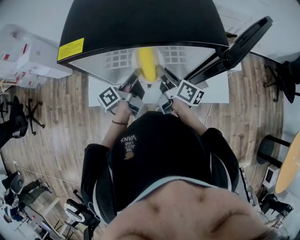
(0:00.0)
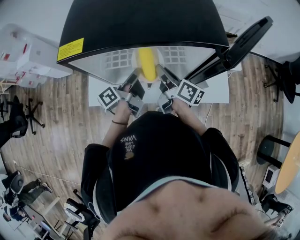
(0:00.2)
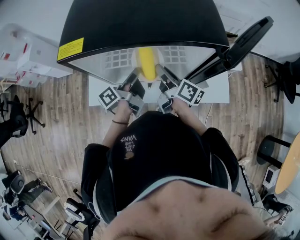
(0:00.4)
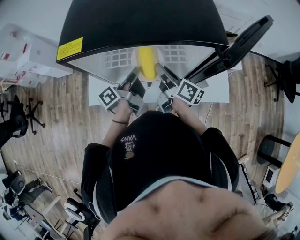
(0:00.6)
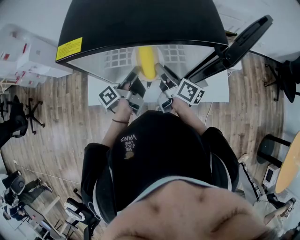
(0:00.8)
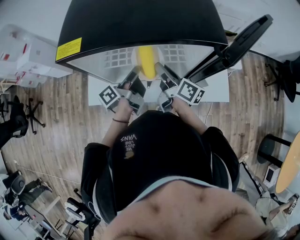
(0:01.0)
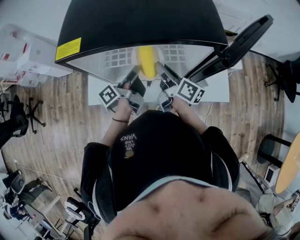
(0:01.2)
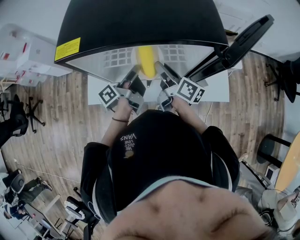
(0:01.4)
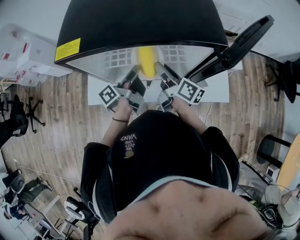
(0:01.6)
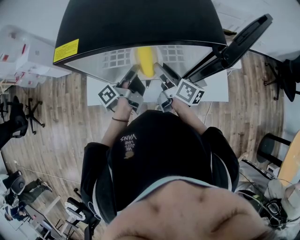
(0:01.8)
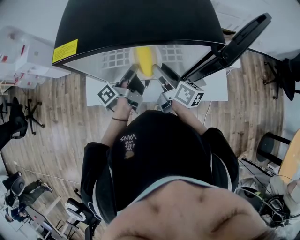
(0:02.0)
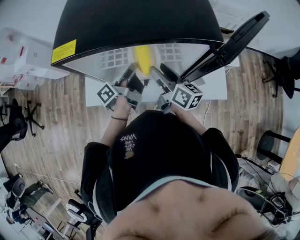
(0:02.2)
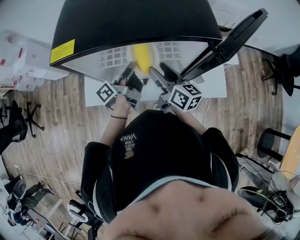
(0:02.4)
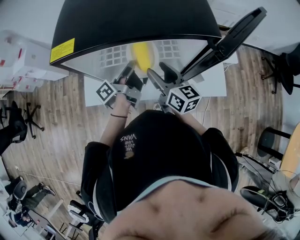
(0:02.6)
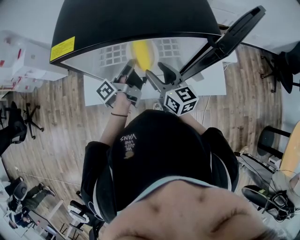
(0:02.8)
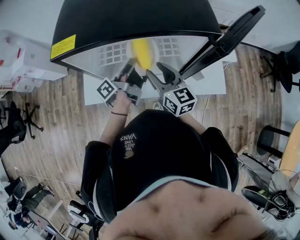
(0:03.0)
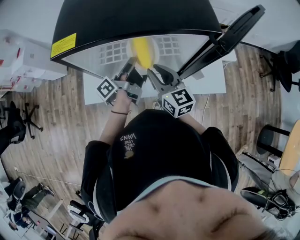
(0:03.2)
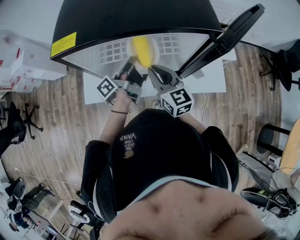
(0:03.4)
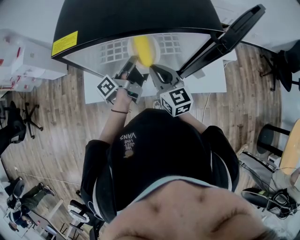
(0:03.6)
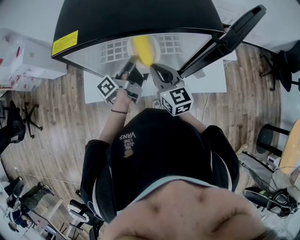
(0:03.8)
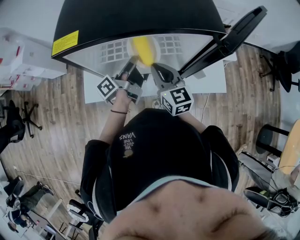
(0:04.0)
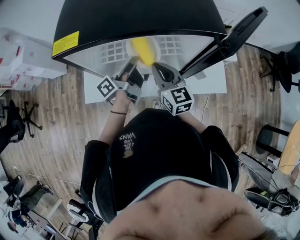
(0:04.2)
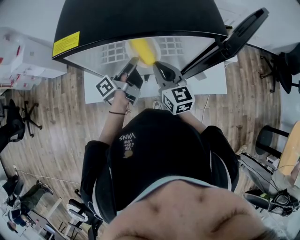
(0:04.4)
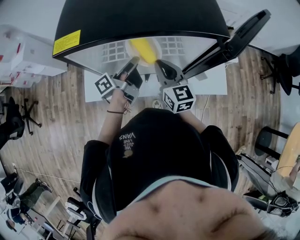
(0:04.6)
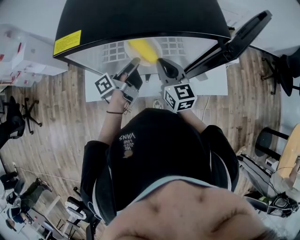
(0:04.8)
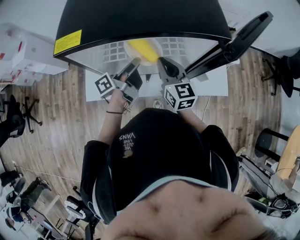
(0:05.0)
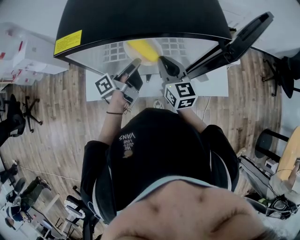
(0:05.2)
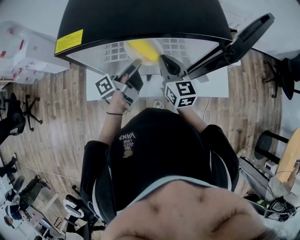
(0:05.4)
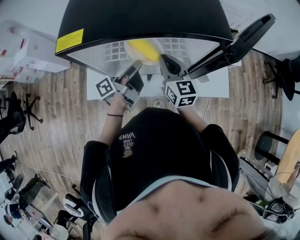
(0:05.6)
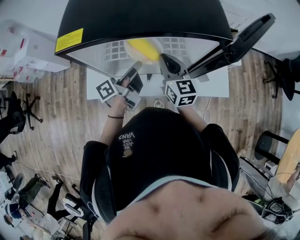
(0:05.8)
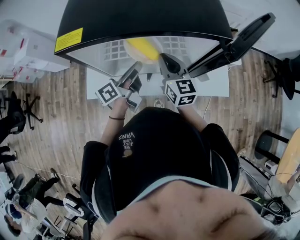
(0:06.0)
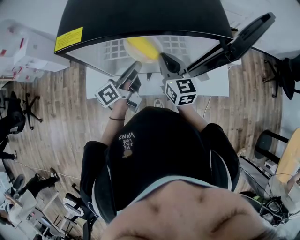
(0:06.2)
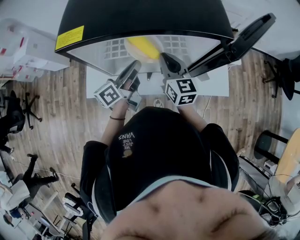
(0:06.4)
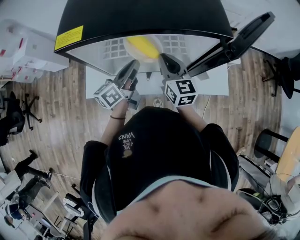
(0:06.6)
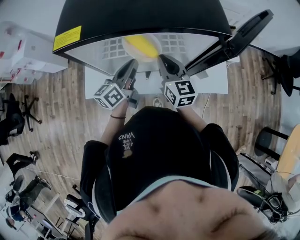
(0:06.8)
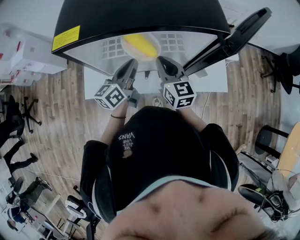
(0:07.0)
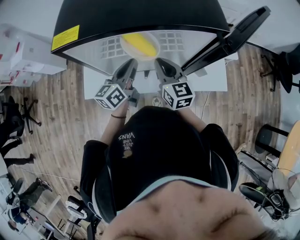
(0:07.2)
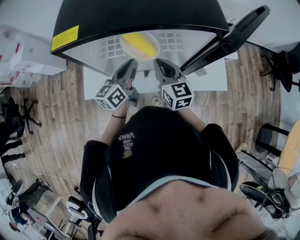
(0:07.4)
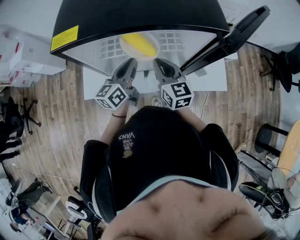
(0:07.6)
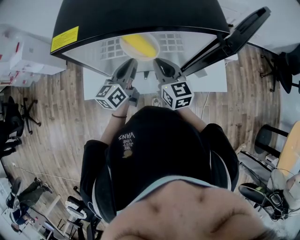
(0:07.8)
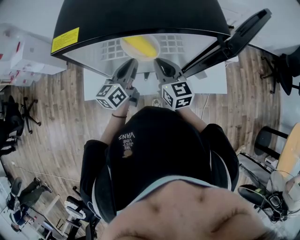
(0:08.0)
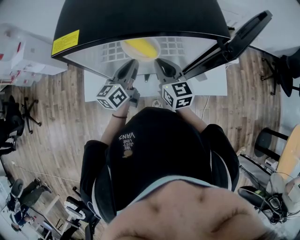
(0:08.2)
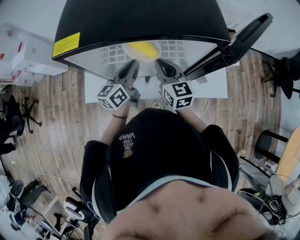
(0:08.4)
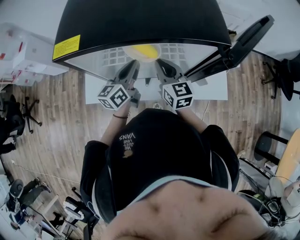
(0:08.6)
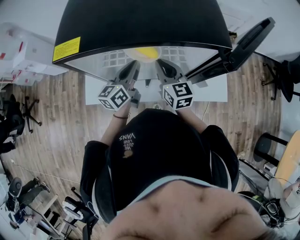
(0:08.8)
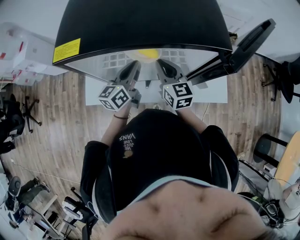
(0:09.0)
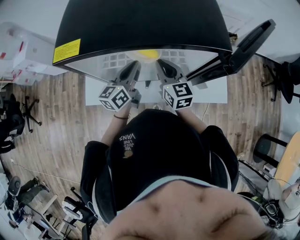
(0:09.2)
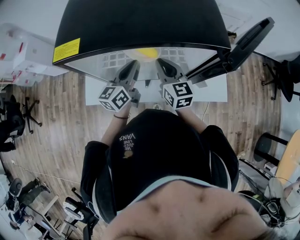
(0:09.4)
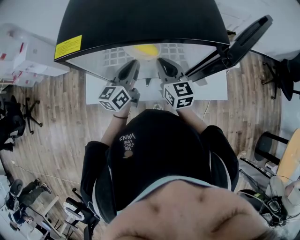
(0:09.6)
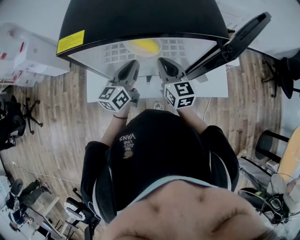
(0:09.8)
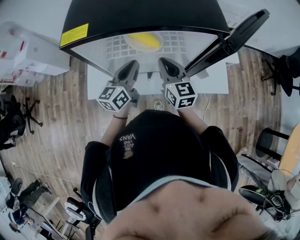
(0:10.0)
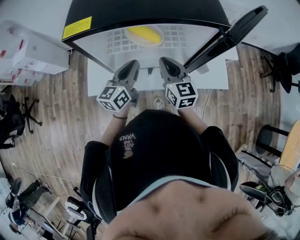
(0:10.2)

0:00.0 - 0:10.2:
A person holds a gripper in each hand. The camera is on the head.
0:00.0 - 0:01.4: The right gripper opens.
0:01.4 - 0:03.0: The right gripper rolls counterclockwise, seen from behind, by about 40 degrees.
0:03.0 - 0:04.4: The right gripper closes up.
0:04.4 - 0:05.8: There are only small adjustments of the grippers.
0:05.8 - 0:07.2: The left gripper turns by some 40 degrees.
0:07.2 - 0:08.8: The grippers move only a little.
0:08.8 - 0:10.2: The grippers both shift backward by approximately 5 cm.

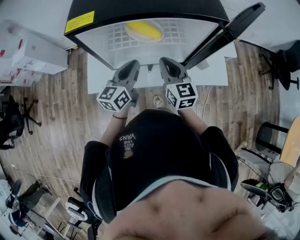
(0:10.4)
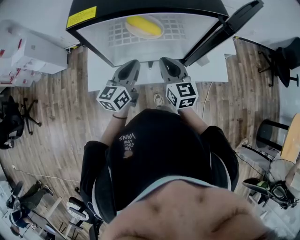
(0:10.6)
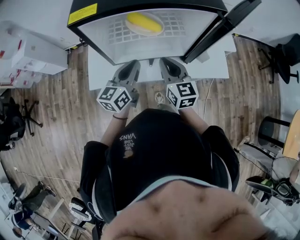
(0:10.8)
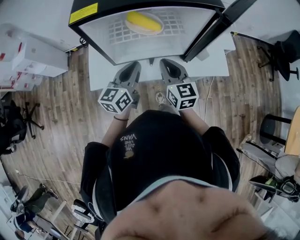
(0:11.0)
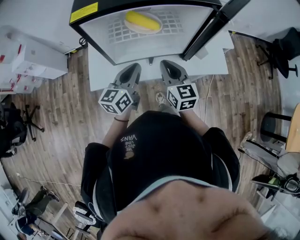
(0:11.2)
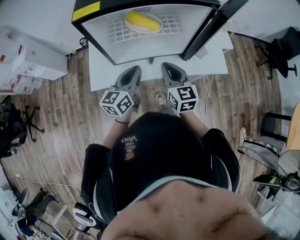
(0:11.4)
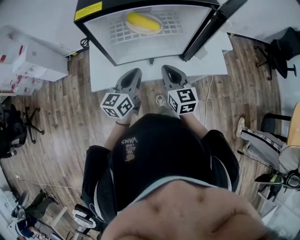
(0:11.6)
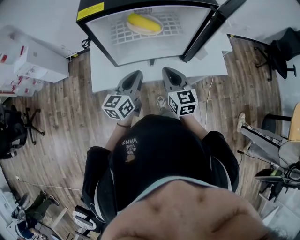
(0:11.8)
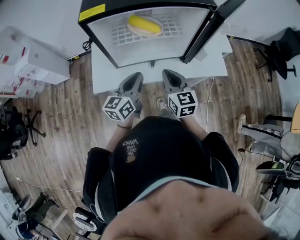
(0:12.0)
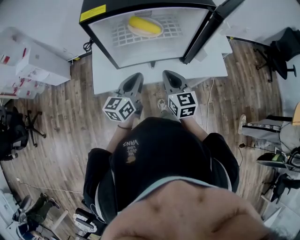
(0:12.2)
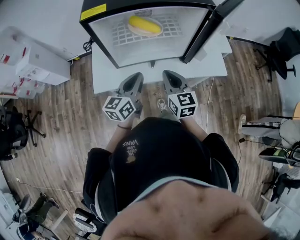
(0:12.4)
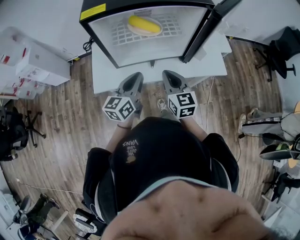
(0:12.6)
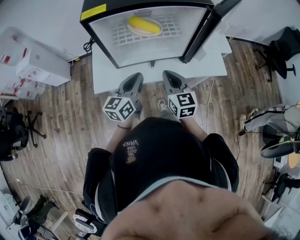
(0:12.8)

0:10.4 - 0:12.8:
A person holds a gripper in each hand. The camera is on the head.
0:10.4 - 0:11.6: The two grippers go roughly 10 cm backward.
0:11.6 - 0:12.8: The grippers move only a little.

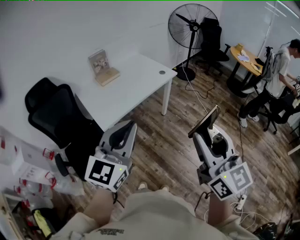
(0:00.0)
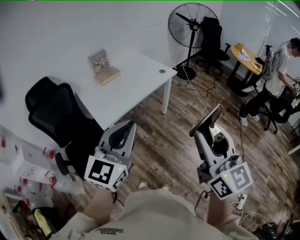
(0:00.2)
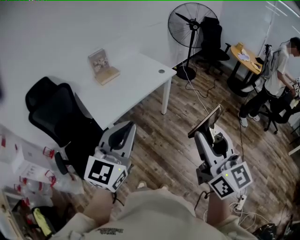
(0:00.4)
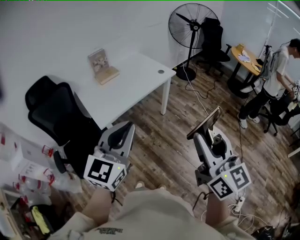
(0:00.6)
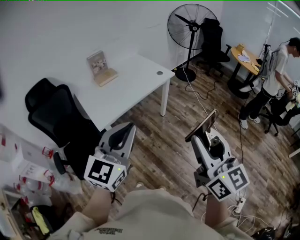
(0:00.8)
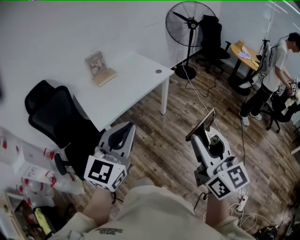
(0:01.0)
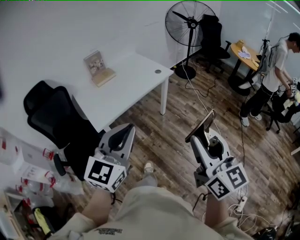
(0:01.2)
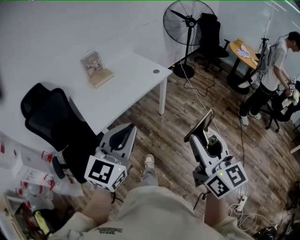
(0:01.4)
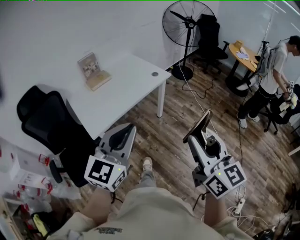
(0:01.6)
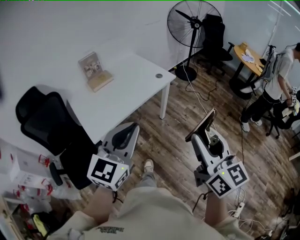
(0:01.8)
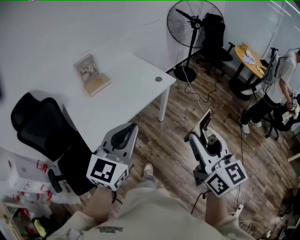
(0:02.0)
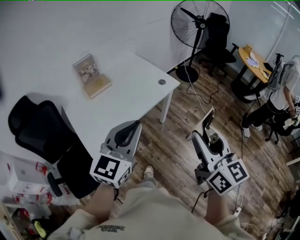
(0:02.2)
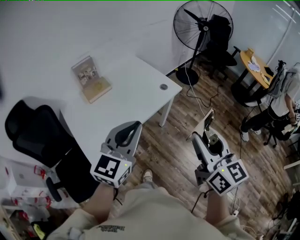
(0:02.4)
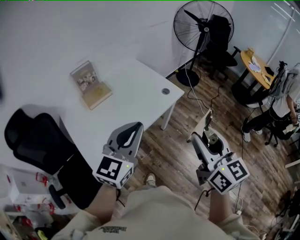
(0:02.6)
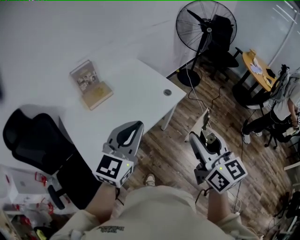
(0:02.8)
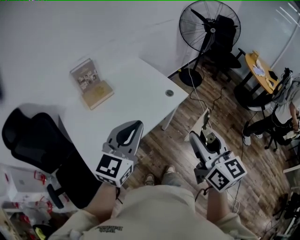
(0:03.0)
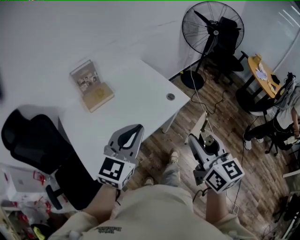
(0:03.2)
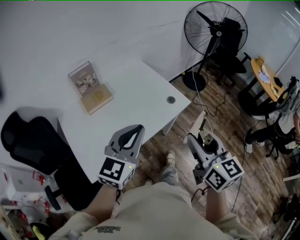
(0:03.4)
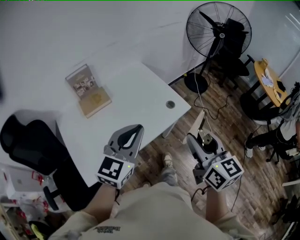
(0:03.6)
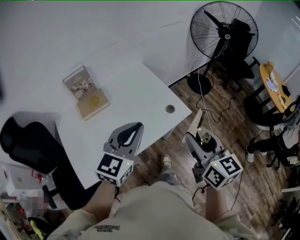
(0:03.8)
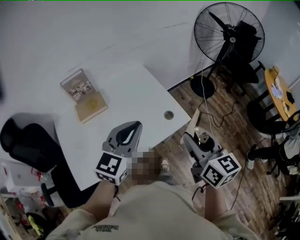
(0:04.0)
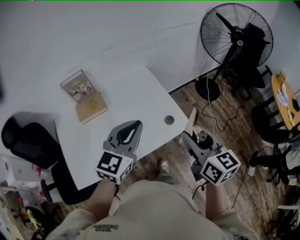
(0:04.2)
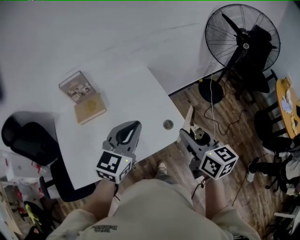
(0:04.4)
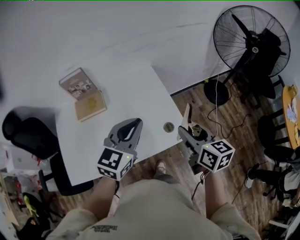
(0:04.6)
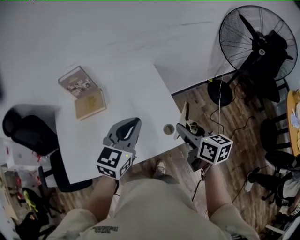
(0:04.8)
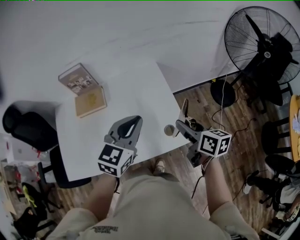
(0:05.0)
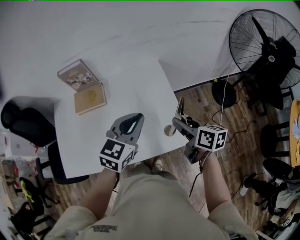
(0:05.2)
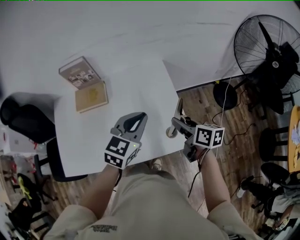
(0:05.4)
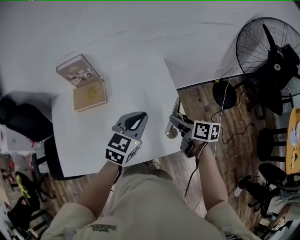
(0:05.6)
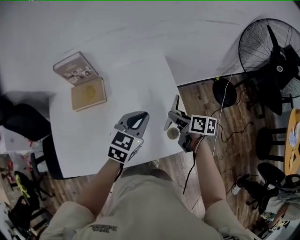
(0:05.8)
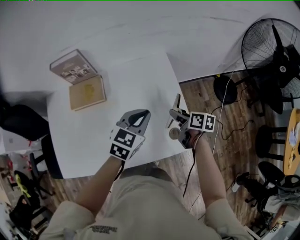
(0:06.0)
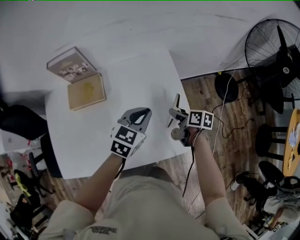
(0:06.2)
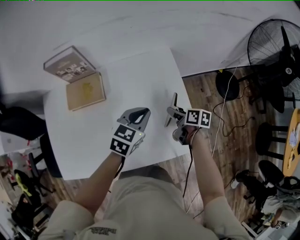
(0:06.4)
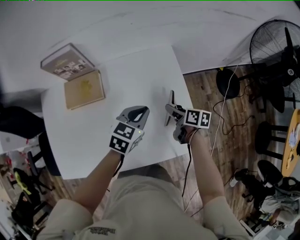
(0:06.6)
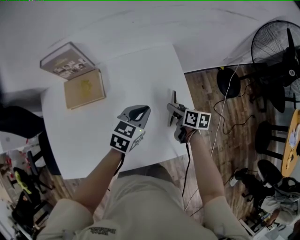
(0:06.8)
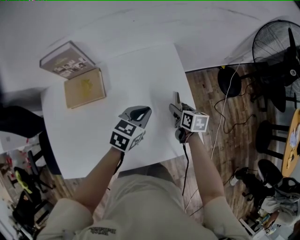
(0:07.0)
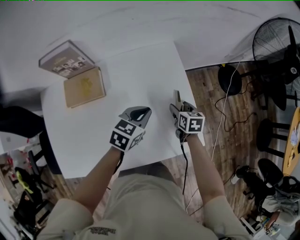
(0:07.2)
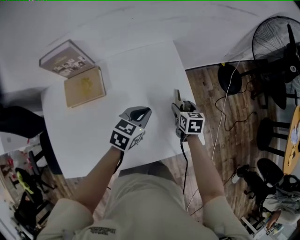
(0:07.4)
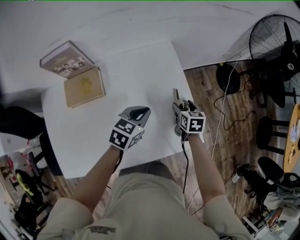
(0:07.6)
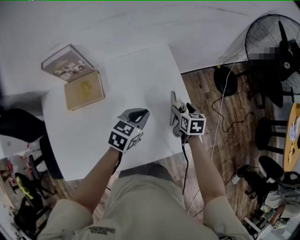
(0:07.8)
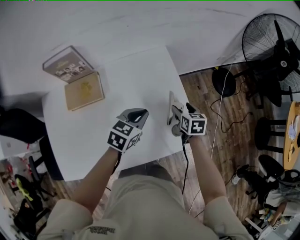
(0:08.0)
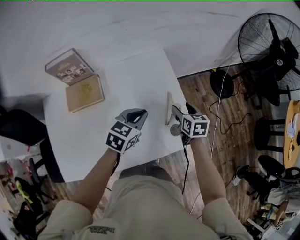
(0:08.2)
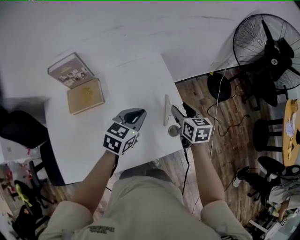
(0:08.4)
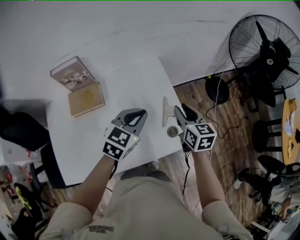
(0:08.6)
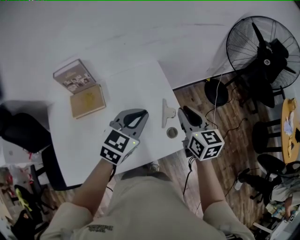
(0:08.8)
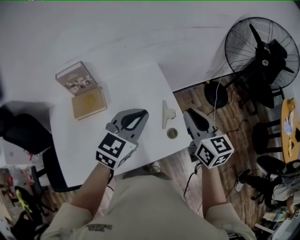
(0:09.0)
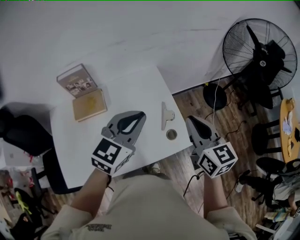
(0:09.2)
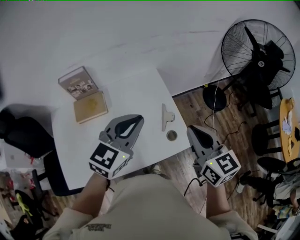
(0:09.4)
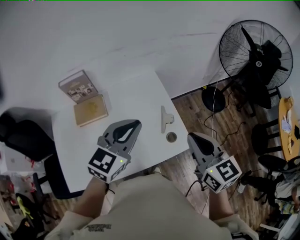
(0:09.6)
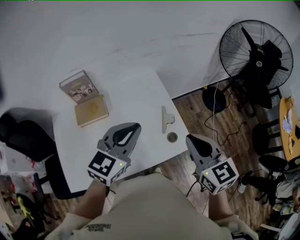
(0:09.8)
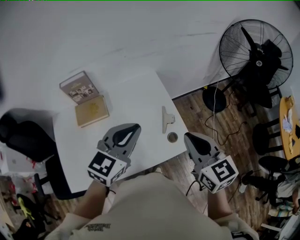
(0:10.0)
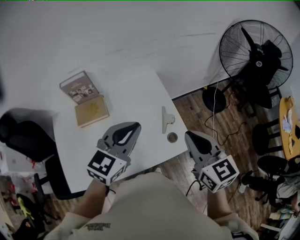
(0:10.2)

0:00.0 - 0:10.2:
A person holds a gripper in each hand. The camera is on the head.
0:00.0 - 0:01.4: The two grippers go some 5 cm to the right.
0:01.4 - 0:03.0: Both grippers travel together forward, roughly 35 cm.
0:03.0 - 0:04.4: The left gripper moves forward and to the right, roughly 30 cm, while the right gripper heads forward, covering approximately 30 cm, and swivels roughly 20 degrees.
0:04.4 - 0:05.8: The right gripper travels downward and forward by approximately 30 cm, and changes its angle by roughly 40 degrees; the left gripper heads forward and downward, covering about 20 cm.
0:05.8 - 0:07.2: Both grippers move downward, roughly 15 cm. The right gripper turns by about 30 degrees.
0:07.2 - 0:08.8: The left gripper is displaced upward by approximately 20 cm, and rotates about 20 degrees. The right gripper shifts roughly 30 cm upward, swivels about 30 degrees, and closes.
0:08.8 - 0:10.2: The left gripper heads upward and backward, covering some 10 cm, while the right gripper heads backward and upward, covering some 15 cm.

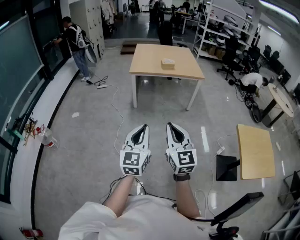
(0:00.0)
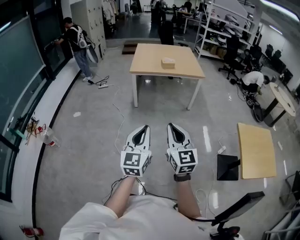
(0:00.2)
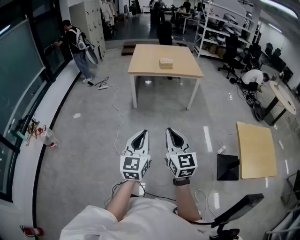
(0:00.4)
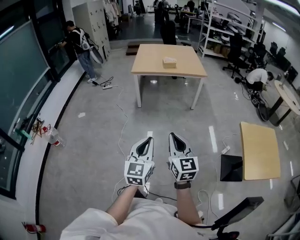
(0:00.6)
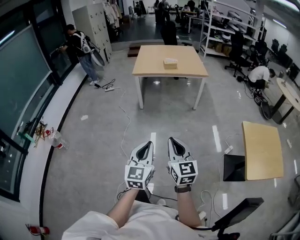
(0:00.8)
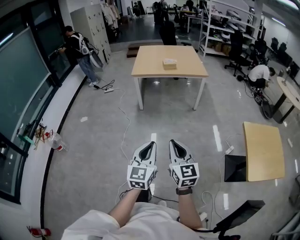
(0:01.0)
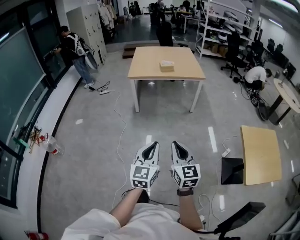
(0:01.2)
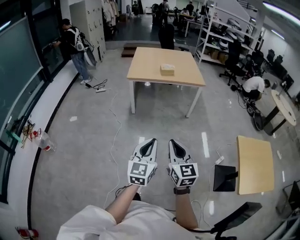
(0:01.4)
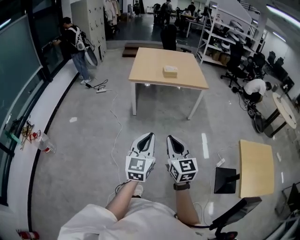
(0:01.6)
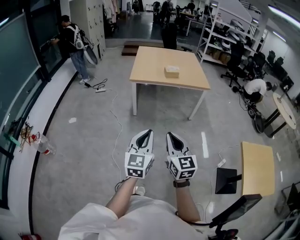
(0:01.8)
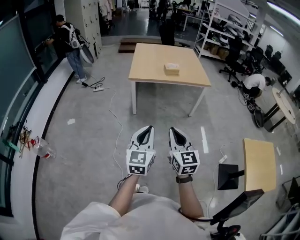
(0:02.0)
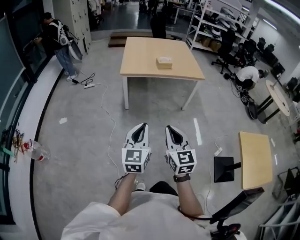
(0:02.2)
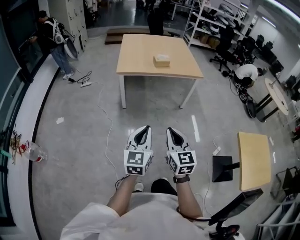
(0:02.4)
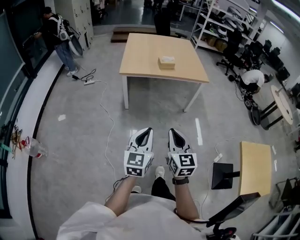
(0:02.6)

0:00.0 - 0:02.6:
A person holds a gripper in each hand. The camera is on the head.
0:00.0 - 0:01.2: Both grippers move to the right and downward, about 15 cm.
0:01.2 - 0:02.6: Both grippers move forward, some 30 cm.
